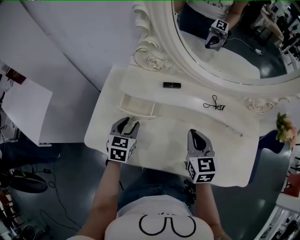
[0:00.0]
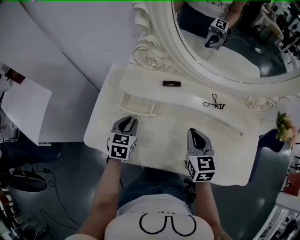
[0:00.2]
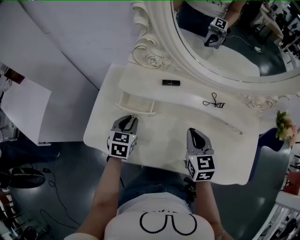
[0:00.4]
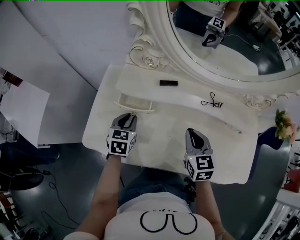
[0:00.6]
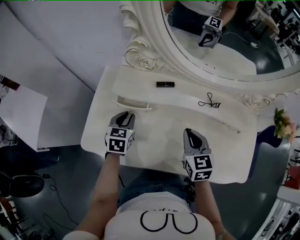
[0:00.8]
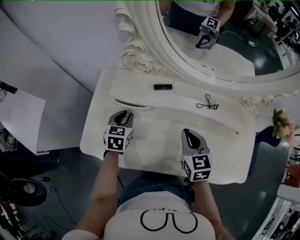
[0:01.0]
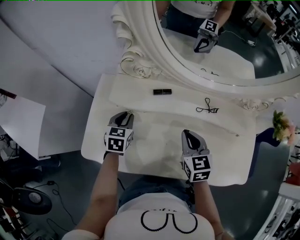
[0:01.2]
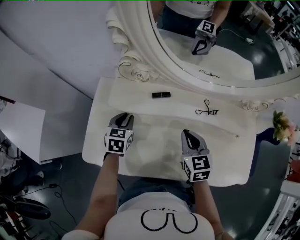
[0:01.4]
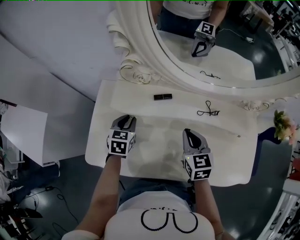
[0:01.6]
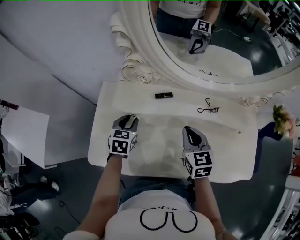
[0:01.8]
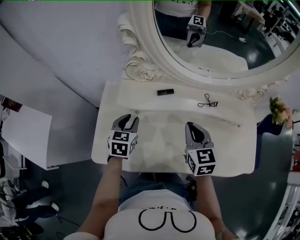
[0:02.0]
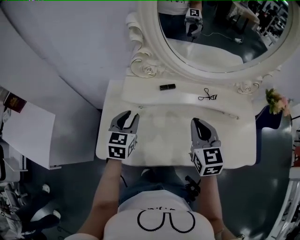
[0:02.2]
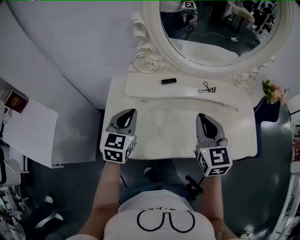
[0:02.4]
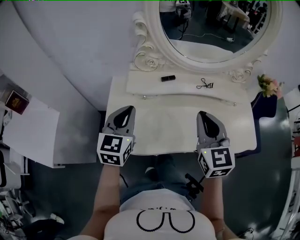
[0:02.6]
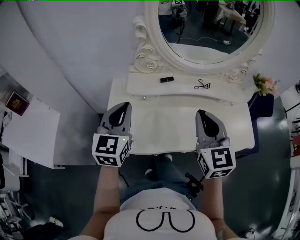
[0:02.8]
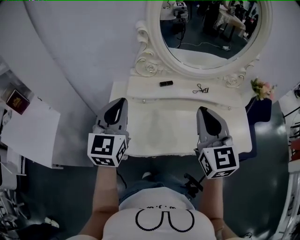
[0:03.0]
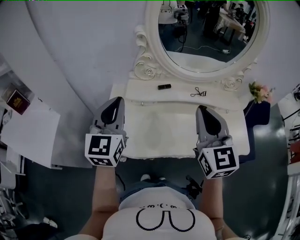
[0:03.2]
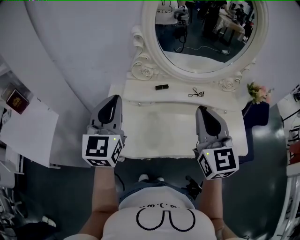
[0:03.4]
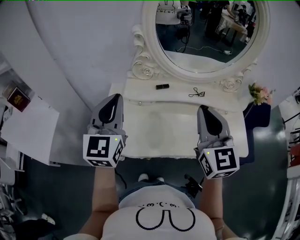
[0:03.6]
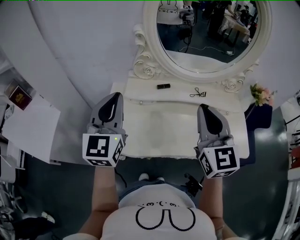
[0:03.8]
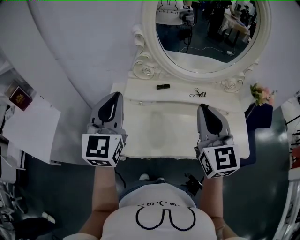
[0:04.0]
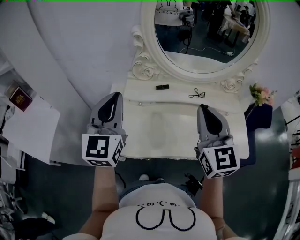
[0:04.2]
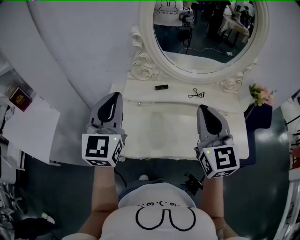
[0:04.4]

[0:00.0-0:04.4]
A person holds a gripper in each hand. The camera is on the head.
0.0 to 1.4 s: The left gripper travels forward by approximately 10 cm, and closes.
1.4 to 3.0 s: Both grippers move upward and backward, about 30 cm. The right gripper turns by about 30 degrees. The left gripper tilts its fingers about 40 degrees upward.
3.0 to 4.4 s: The left gripper heads upward, covering about 5 cm.

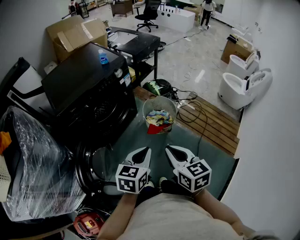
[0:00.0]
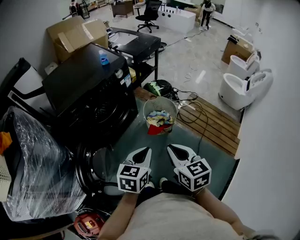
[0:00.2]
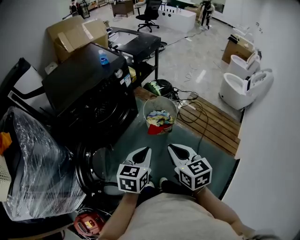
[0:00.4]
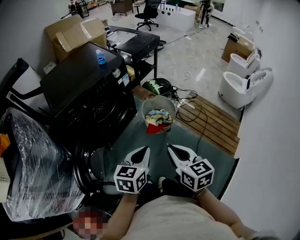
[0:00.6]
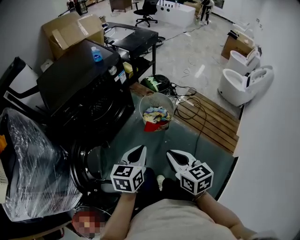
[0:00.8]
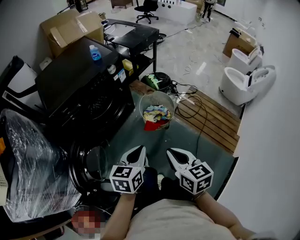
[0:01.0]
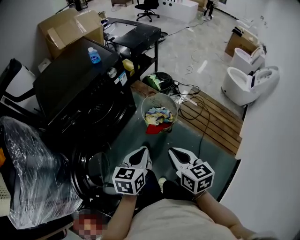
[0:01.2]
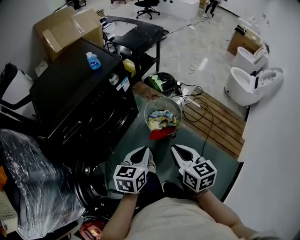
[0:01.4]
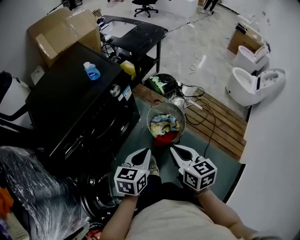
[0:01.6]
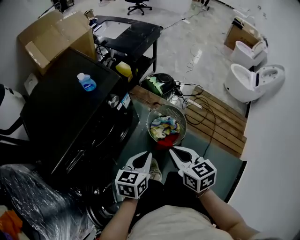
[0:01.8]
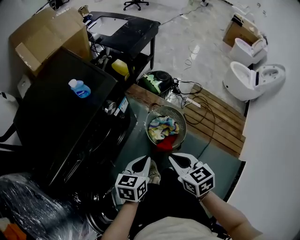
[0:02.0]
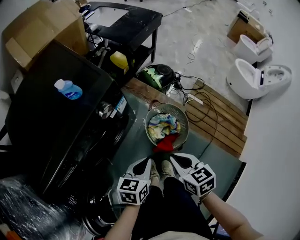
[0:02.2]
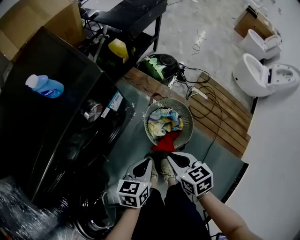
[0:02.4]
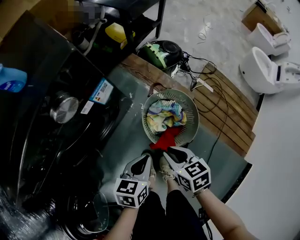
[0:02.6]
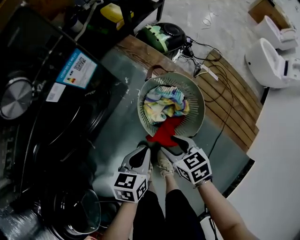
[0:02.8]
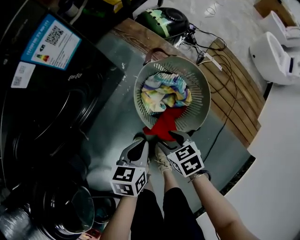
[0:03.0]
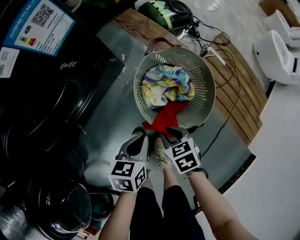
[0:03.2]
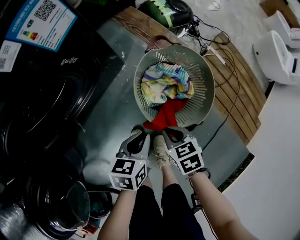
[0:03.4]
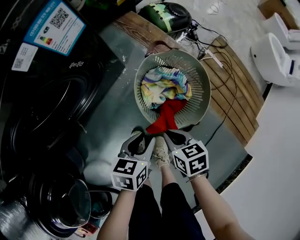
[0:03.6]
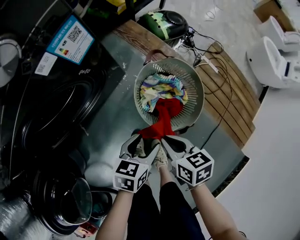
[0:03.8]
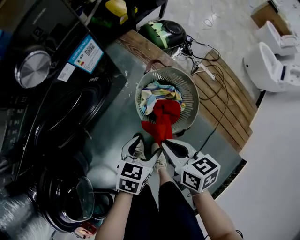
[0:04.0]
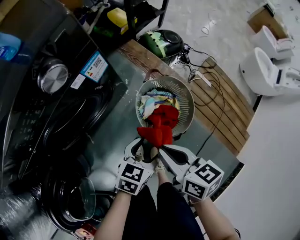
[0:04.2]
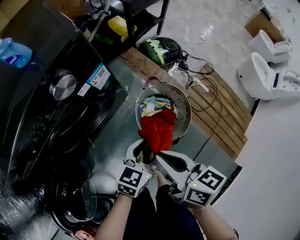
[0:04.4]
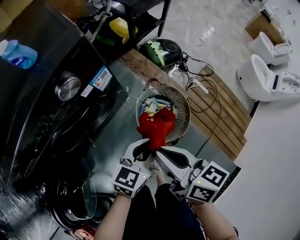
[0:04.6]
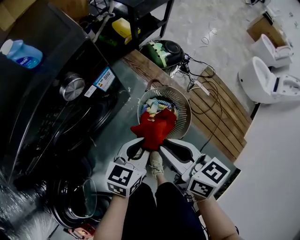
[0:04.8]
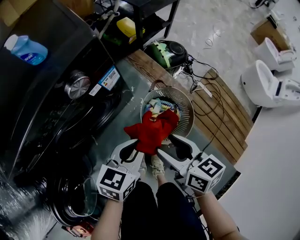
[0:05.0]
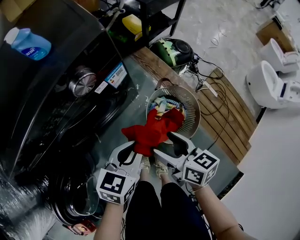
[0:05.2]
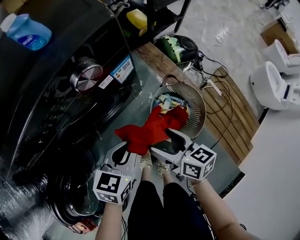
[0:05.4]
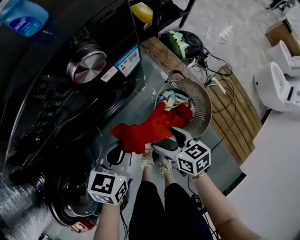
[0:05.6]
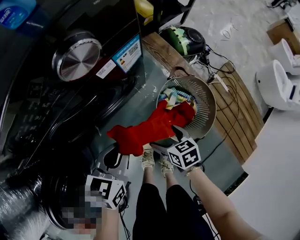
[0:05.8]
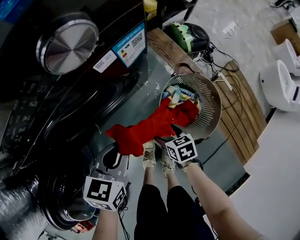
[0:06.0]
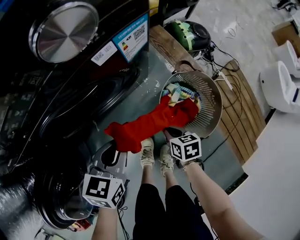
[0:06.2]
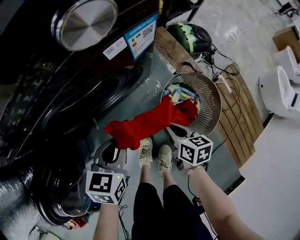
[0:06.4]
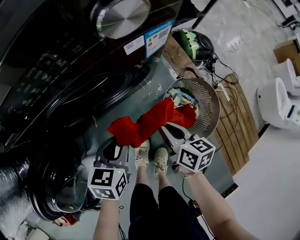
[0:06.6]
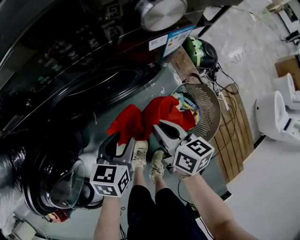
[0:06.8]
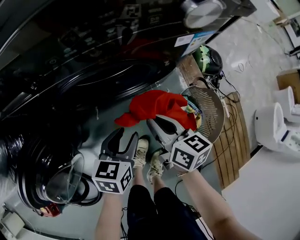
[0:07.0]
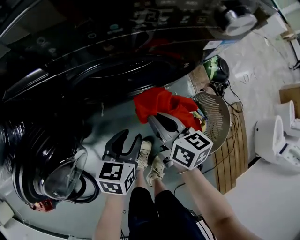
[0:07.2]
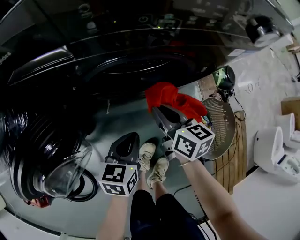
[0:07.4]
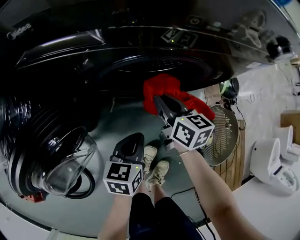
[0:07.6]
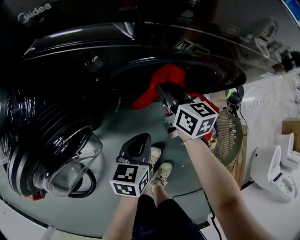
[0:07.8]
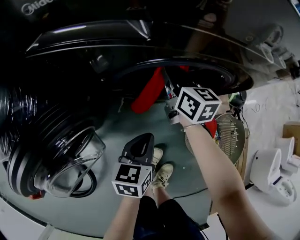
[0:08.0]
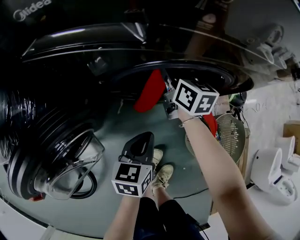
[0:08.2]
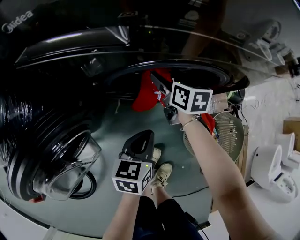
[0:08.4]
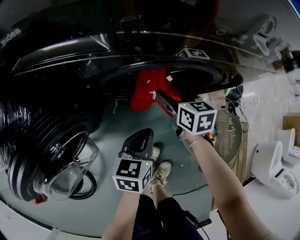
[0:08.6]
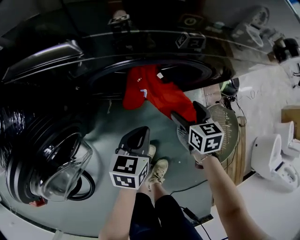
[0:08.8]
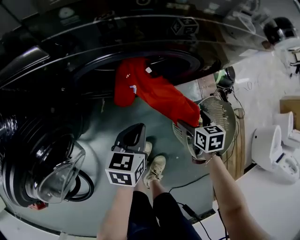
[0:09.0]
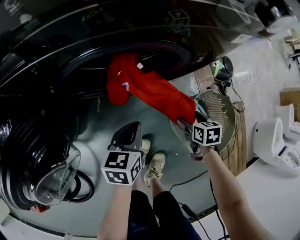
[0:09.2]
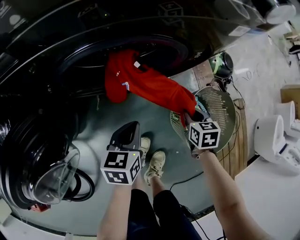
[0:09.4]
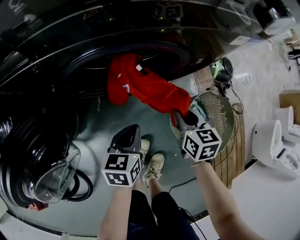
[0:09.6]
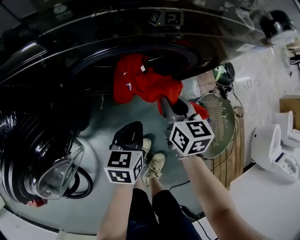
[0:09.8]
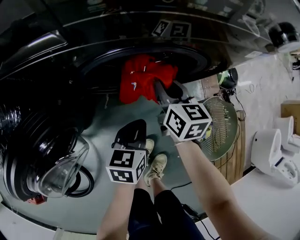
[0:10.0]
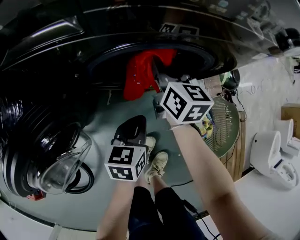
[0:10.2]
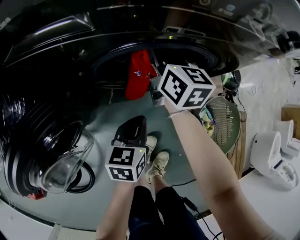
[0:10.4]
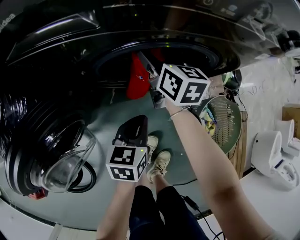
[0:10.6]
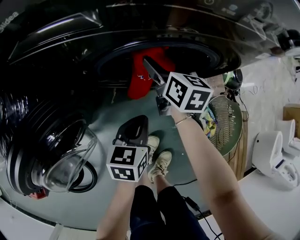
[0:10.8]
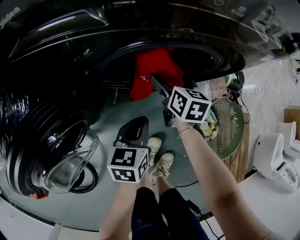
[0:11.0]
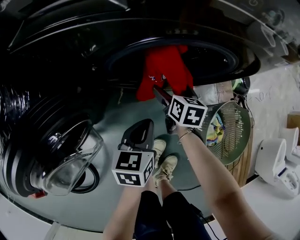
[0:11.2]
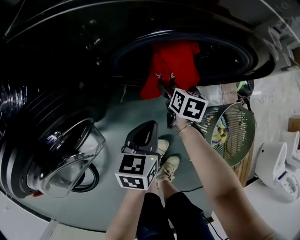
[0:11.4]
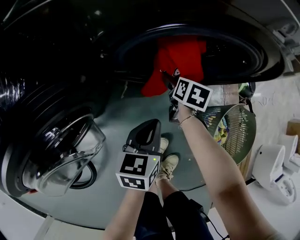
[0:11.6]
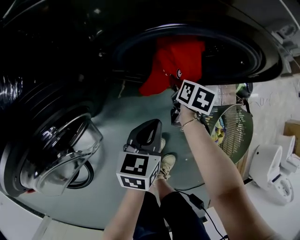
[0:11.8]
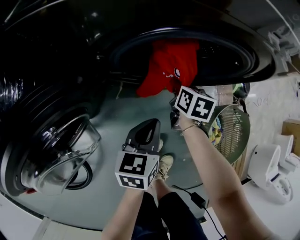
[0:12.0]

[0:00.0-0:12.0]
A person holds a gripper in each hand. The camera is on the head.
0.0 to 1.6 s: The two grippers go some 20 cm forward.
1.6 to 3.0 s: Both grippers move downward, approximately 40 cm. The left gripper swivels some 20 degrees; the right gripper tips its fingers downward by approximately 30 degrees, and opens up.
3.0 to 4.4 s: The left gripper heads upward, covering about 20 cm, changes its angle by roughly 20 degrees, and opens up, while the right gripper is displaced upward by some 35 cm, tilts its fingers about 40 degrees upward, and closes its fingers.
4.4 to 6.0 s: The right gripper heads downward, covering roughly 35 cm, tilts its fingers about 30 degrees downward, and opens up; the left gripper moves to the left, roughly 20 cm, turns by some 30 degrees, and closes.
6.0 to 7.6 s: The left gripper goes roughly 15 cm to the left and downward, and changes its angle by some 30 degrees. The right gripper shifts some 30 cm to the left, forward and upward, points its fingers roughly 30 degrees further upward, and closes.
7.6 to 9.0 s: The right gripper shifts approximately 25 cm to the right, downward and backward, angles its fingers downward, by some 30 degrees, and opens up. Meanwhile the left gripper is displaced to the right by roughly 5 cm.
9.0 to 10.4 s: The right gripper heads to the left, upward and forward, covering roughly 35 cm, tips its fingers upward by approximately 40 degrees, and closes up.
10.4 to 12.0 s: The right gripper heads downward, covering about 20 cm, points its fingers roughly 30 degrees further downward, and opens, then closes again.

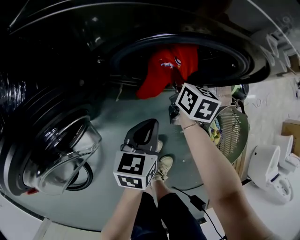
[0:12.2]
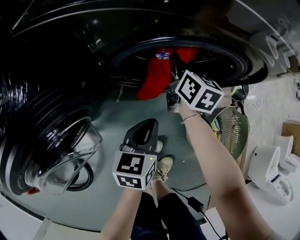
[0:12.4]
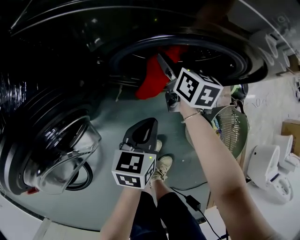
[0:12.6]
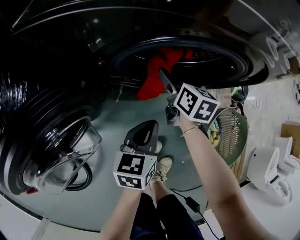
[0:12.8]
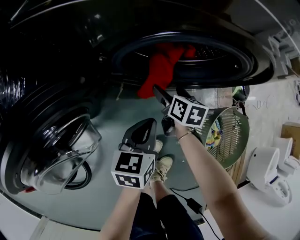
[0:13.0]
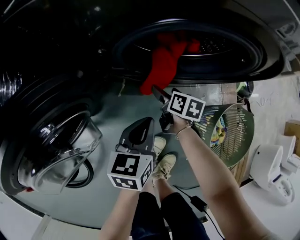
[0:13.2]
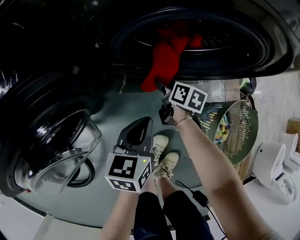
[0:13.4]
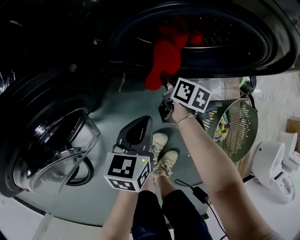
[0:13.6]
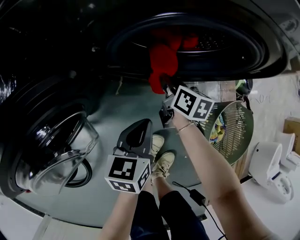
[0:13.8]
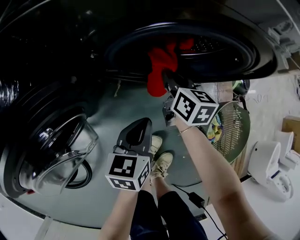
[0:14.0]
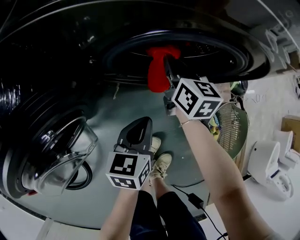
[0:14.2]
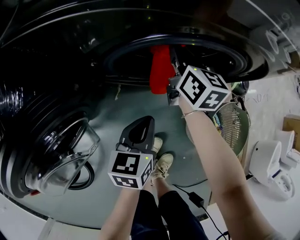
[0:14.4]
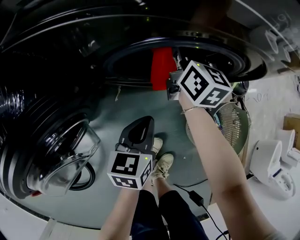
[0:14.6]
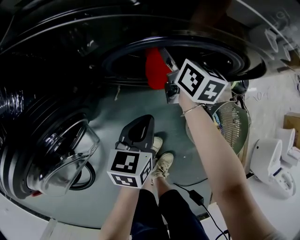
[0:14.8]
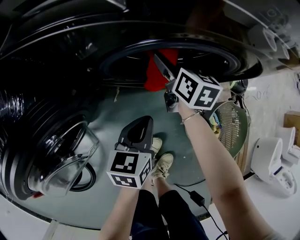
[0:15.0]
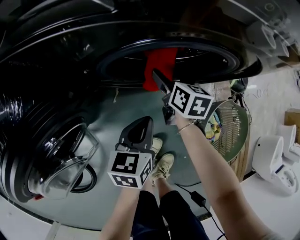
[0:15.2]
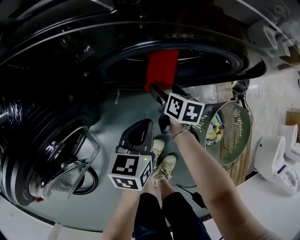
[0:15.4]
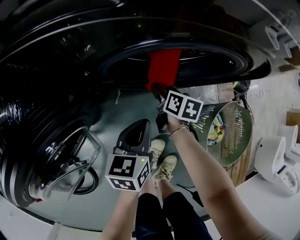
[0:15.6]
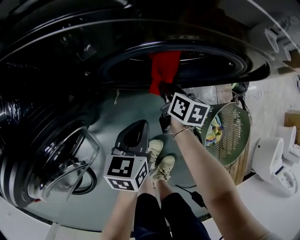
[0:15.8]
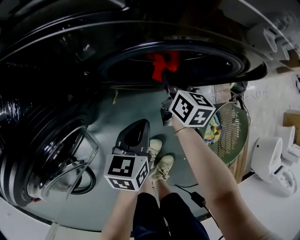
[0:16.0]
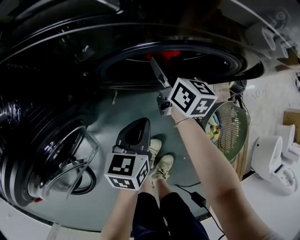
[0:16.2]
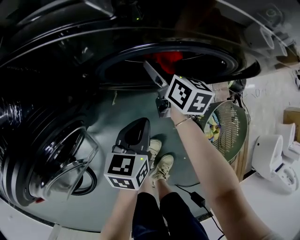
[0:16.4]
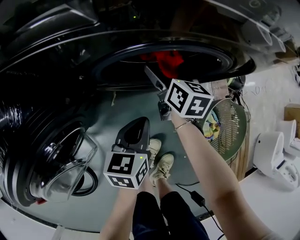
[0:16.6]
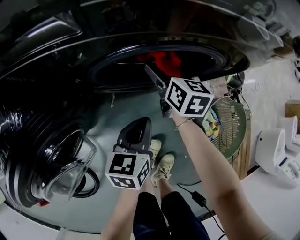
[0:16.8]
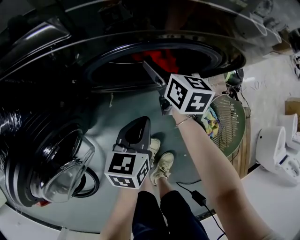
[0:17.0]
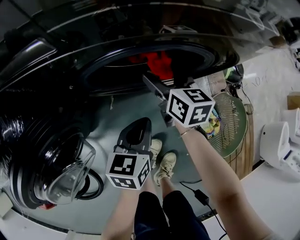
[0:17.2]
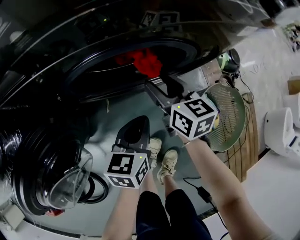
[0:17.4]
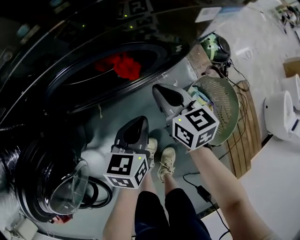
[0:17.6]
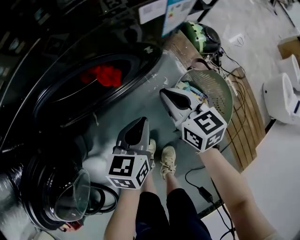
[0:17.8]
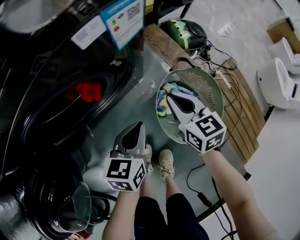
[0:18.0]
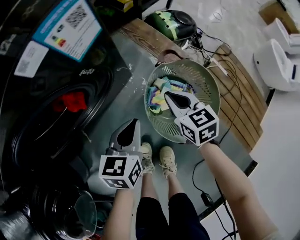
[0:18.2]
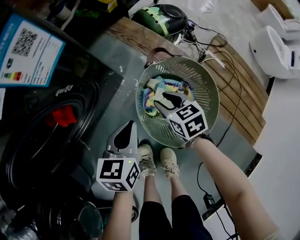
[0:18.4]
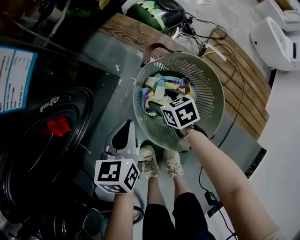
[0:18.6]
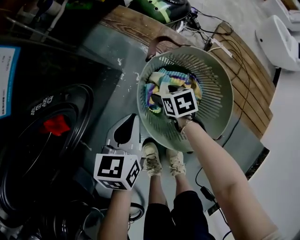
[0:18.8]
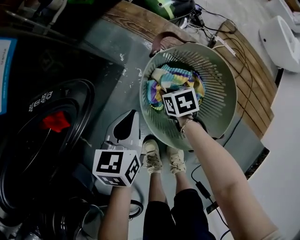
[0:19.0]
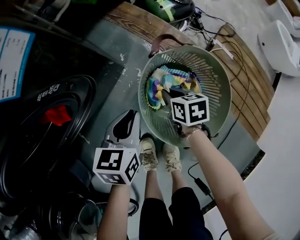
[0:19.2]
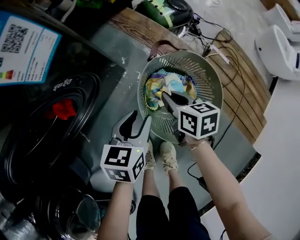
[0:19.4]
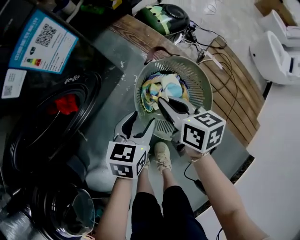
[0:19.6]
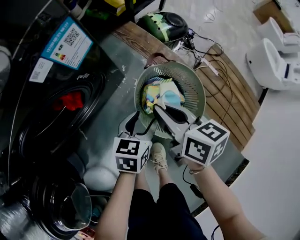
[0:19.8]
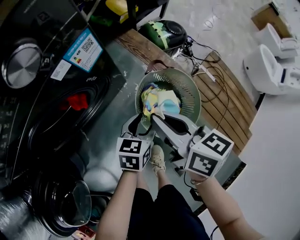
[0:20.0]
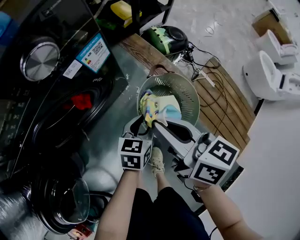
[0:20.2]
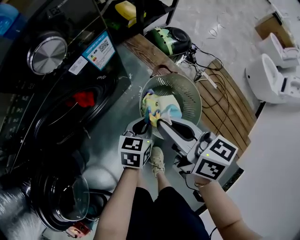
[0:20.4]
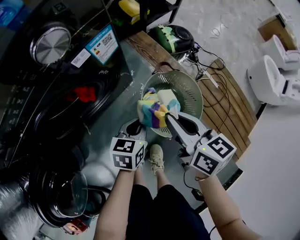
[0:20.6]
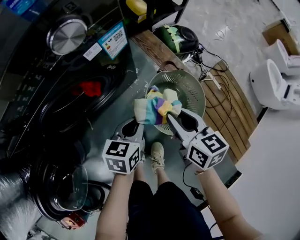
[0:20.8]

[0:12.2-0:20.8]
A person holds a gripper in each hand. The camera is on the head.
12.2 to 13.6 s: The right gripper shifts about 10 cm downward, swivels about 20 degrees, and opens and closes again.
13.6 to 15.0 s: The right gripper shifts approximately 20 cm upward and forward, turns by approximately 30 degrees, and opens its fingers. The left gripper ends up roughly 5 cm from where it was.
15.0 to 16.6 s: The right gripper moves some 15 cm downward and comes back, and closes and opens again.
16.6 to 18.0 s: The right gripper moves to the right and backward, approximately 30 cm, and closes, while the left gripper is displaced to the right by roughly 20 cm, and changes its angle by approximately 30 degrees.
18.0 to 19.4 s: The left gripper moves to the right and downward, about 10 cm, and opens up. The right gripper shifts approximately 15 cm downward and to the right, changes its angle by some 30 degrees, and opens, then closes once more.
19.4 to 20.8 s: The right gripper shifts approximately 25 cm upward, and swivels roughly 20 degrees, while the left gripper shifts some 10 cm upward.
